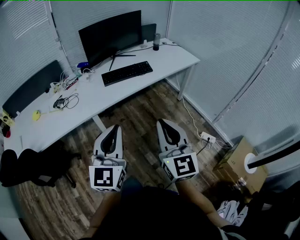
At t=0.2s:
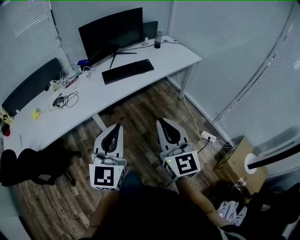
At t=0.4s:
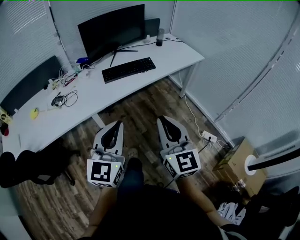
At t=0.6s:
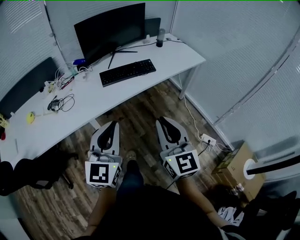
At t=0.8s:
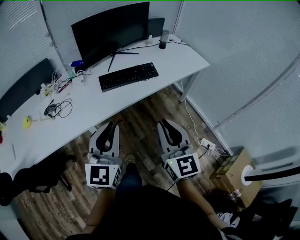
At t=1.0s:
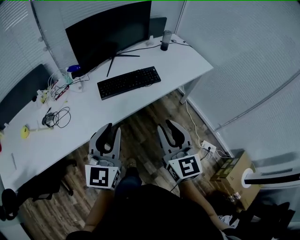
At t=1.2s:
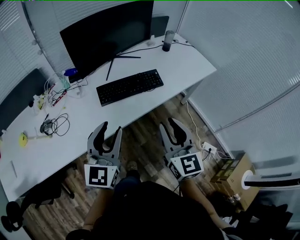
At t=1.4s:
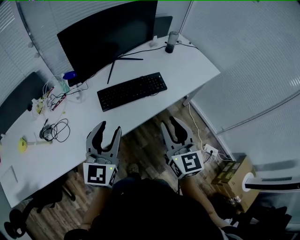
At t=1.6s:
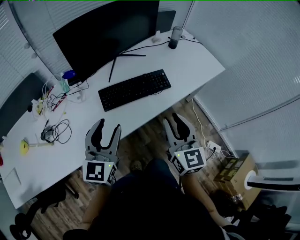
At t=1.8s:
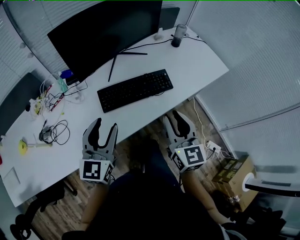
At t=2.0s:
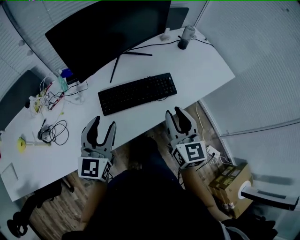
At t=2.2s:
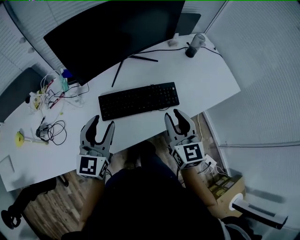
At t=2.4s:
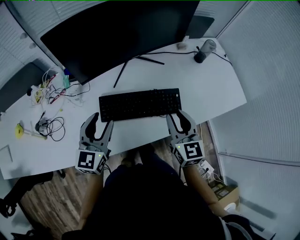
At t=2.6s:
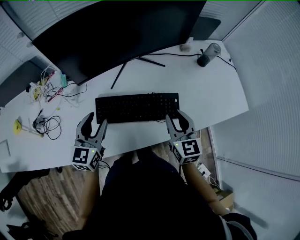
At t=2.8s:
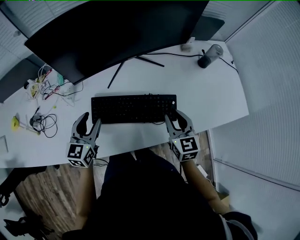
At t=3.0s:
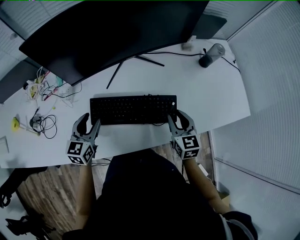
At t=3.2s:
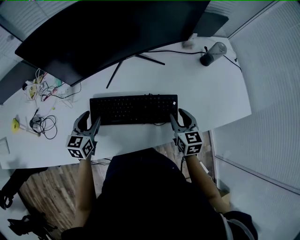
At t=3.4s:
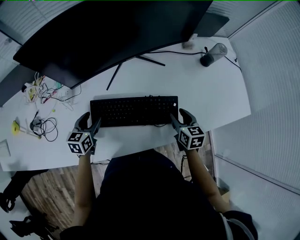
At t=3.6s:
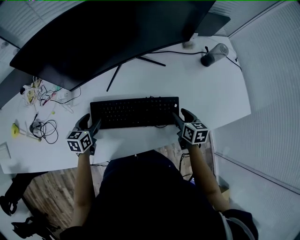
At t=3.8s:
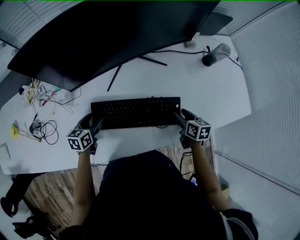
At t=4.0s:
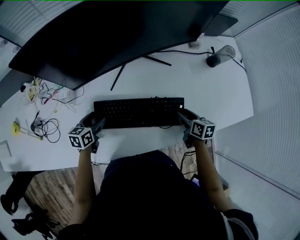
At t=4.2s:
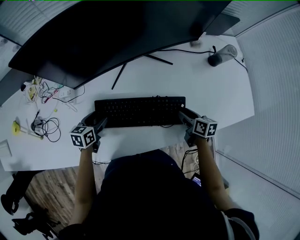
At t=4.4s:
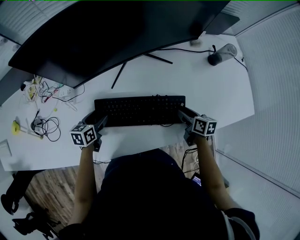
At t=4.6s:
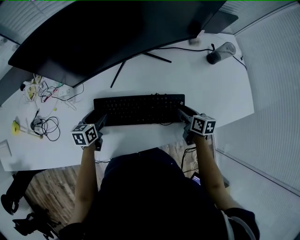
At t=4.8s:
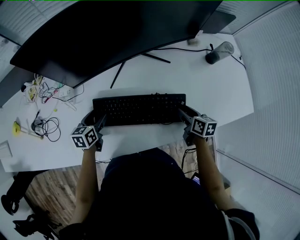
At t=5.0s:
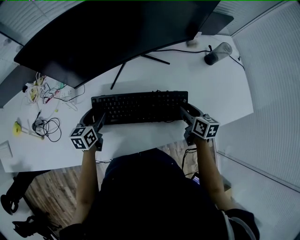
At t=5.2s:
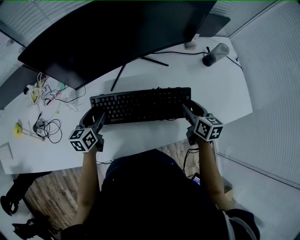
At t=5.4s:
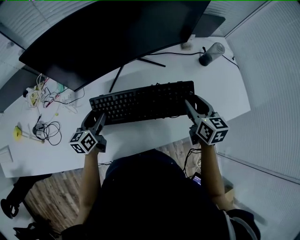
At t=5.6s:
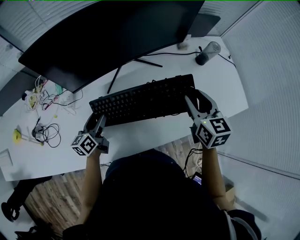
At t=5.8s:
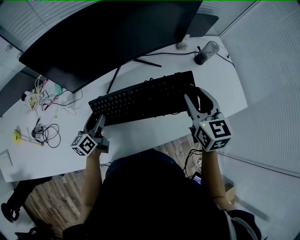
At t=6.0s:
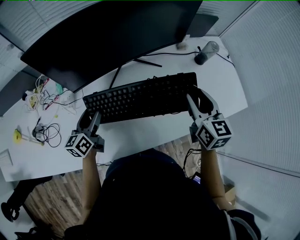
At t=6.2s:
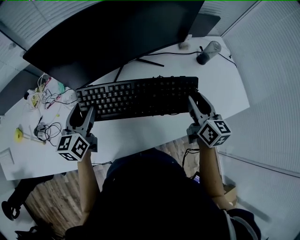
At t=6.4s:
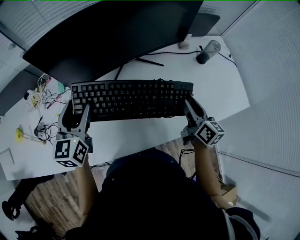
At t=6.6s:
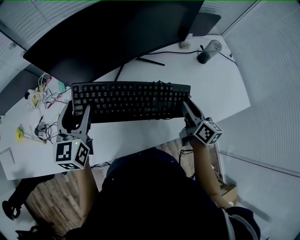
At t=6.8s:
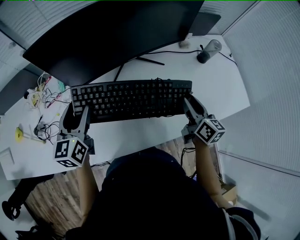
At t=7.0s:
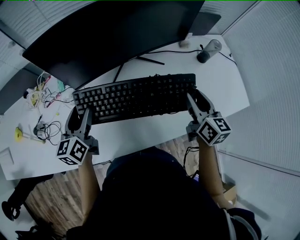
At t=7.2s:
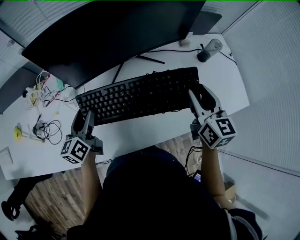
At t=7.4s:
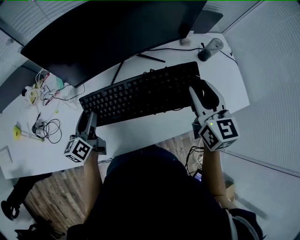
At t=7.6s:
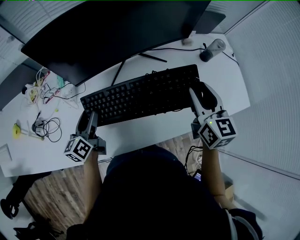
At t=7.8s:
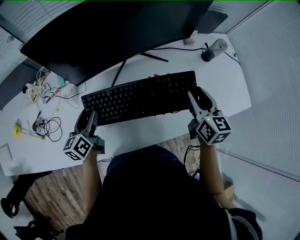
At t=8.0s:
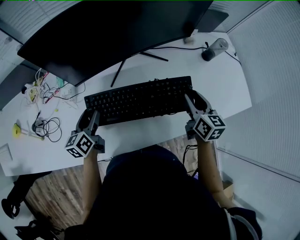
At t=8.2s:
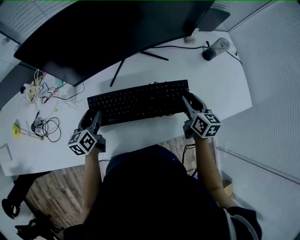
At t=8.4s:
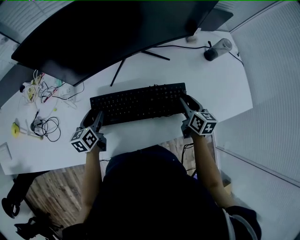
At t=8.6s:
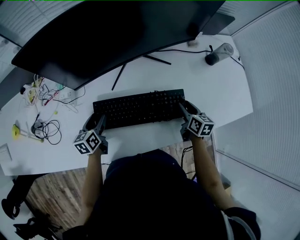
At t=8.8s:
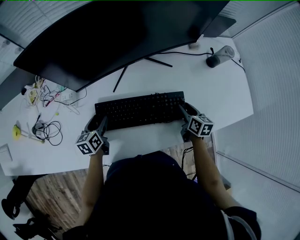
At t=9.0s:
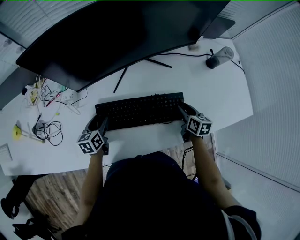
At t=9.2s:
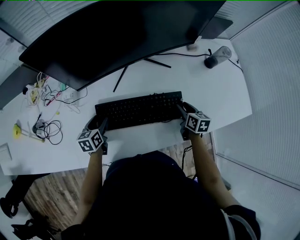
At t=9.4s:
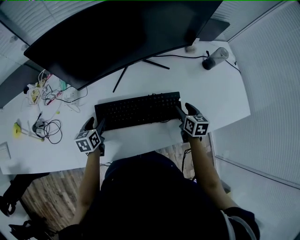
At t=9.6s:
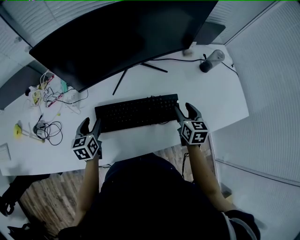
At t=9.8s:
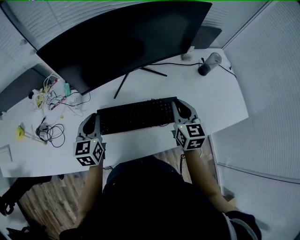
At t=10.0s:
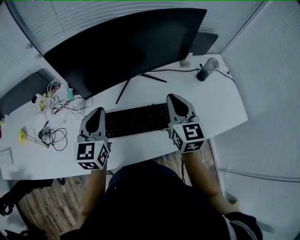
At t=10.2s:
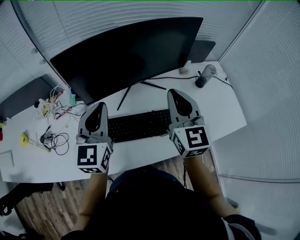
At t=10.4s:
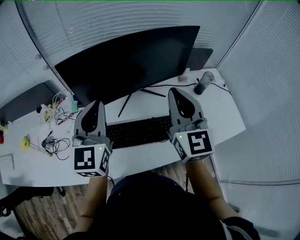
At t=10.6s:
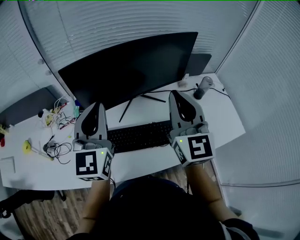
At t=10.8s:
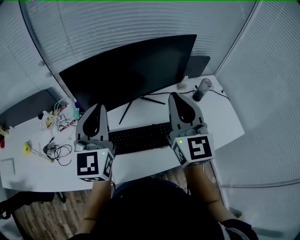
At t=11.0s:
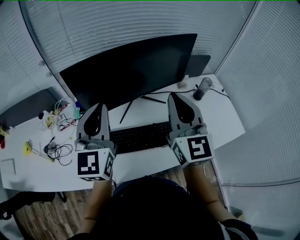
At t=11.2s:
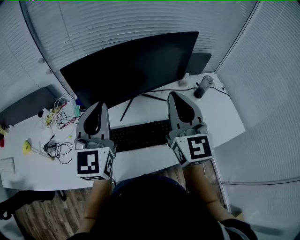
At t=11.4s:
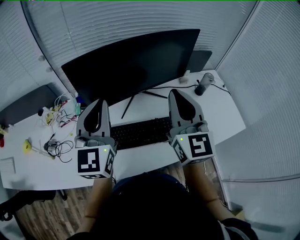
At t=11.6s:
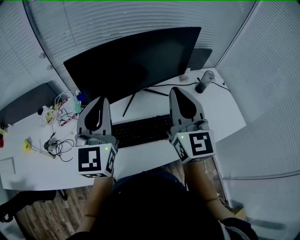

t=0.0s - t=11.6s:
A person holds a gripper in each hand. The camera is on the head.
t=0.0s - t=1.4s: The grippers both shift forward by about 40 cm. The left gripper opens up; the right gripper opens.
t=1.4s - t=2.8s: The two grippers go about 30 cm forward and downward. The left gripper swivels approximately 30 degrees. Meanwhile the right gripper rotates approximately 30 degrees.
t=2.8s - t=4.4s: The two grippers go some 15 cm downward. The right gripper rotates about 40 degrees, and opens its fingers, while the left gripper turns by some 30 degrees.
t=4.4s - t=5.8s: The left gripper is displaced upward by about 10 cm, and turns by approximately 30 degrees; the right gripper shifts approximately 25 cm upward, and swivels some 50 degrees.
t=5.8s - t=7.2s: The right gripper reaches approximately 10 cm downward, then returns; the left gripper goes roughly 10 cm upward.
t=7.2s - t=8.8s: The right gripper goes about 25 cm downward, and swivels some 30 degrees. Meanwhile the left gripper heads downward, covering about 15 cm, and turns by some 20 degrees.
t=8.8s - t=10.2s: Both grippers travel together upward, about 35 cm. The right gripper points its fingers approximately 30 degrees further upward, and closes its fingers. The left gripper tilts its fingers roughly 30 degrees upward, and closes its fingers.
t=10.2s - t=11.6s: The grippers both shift upward by about 5 cm.

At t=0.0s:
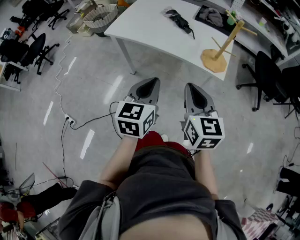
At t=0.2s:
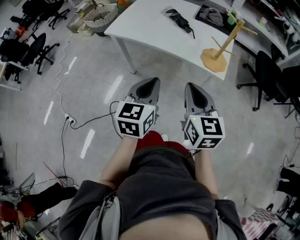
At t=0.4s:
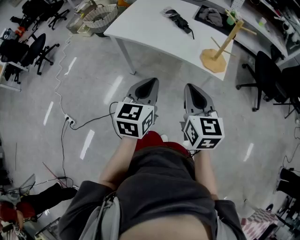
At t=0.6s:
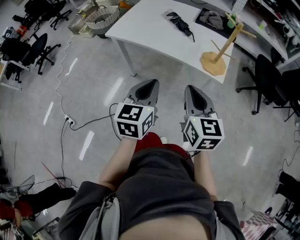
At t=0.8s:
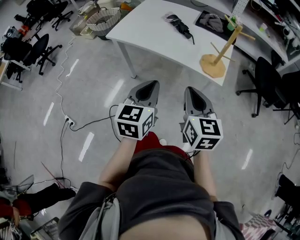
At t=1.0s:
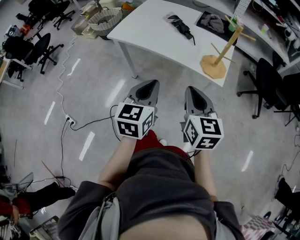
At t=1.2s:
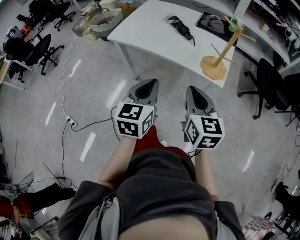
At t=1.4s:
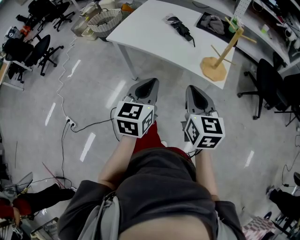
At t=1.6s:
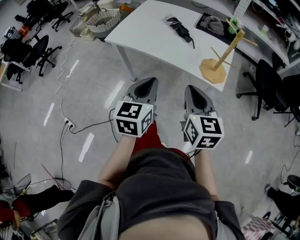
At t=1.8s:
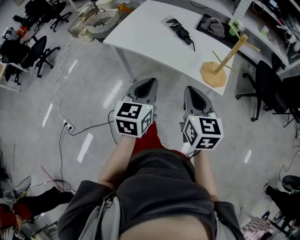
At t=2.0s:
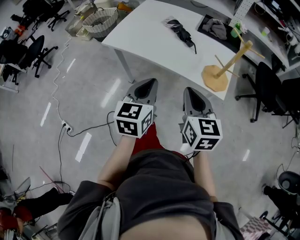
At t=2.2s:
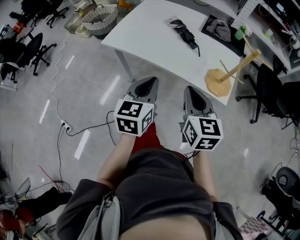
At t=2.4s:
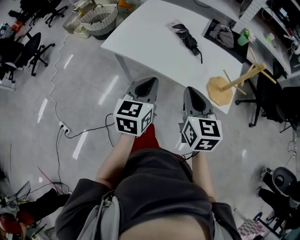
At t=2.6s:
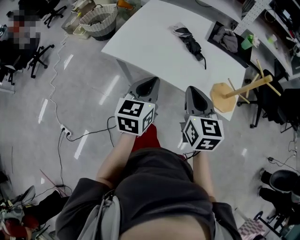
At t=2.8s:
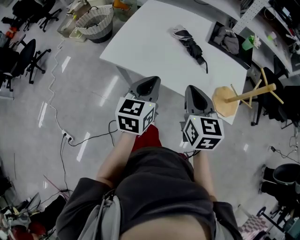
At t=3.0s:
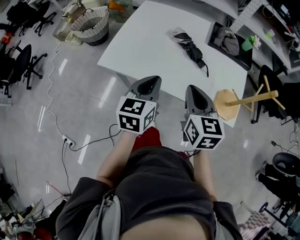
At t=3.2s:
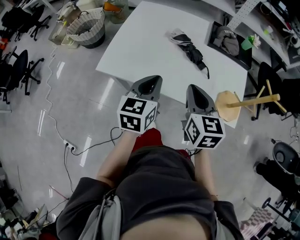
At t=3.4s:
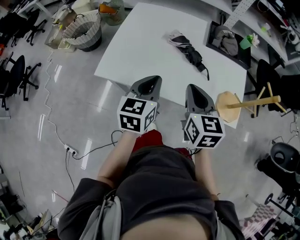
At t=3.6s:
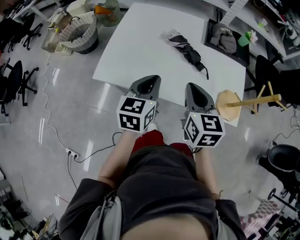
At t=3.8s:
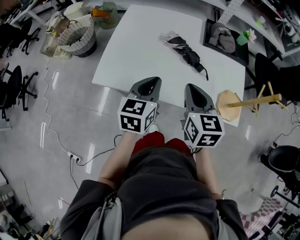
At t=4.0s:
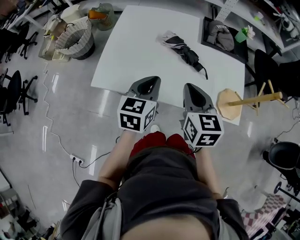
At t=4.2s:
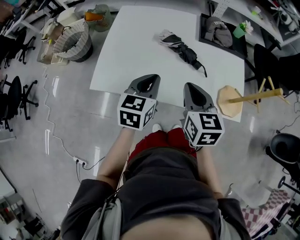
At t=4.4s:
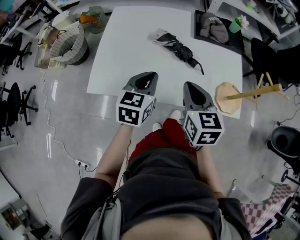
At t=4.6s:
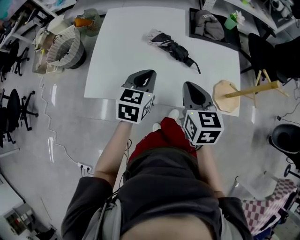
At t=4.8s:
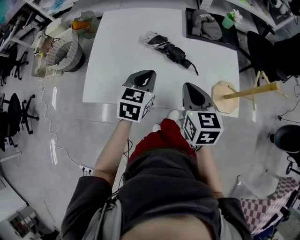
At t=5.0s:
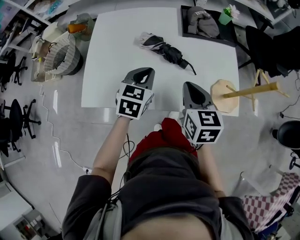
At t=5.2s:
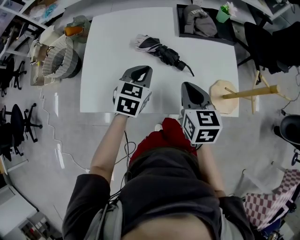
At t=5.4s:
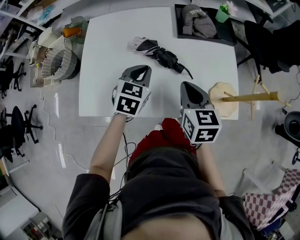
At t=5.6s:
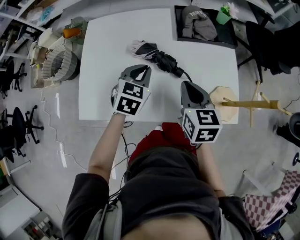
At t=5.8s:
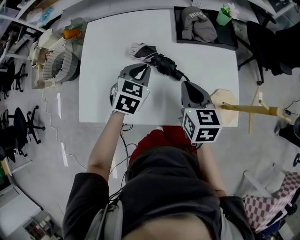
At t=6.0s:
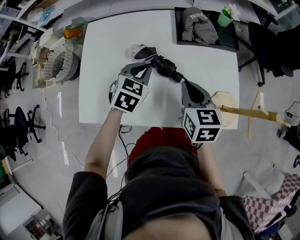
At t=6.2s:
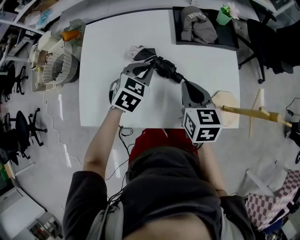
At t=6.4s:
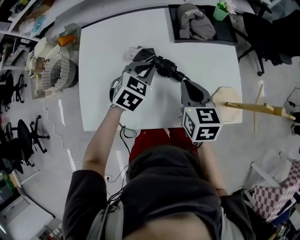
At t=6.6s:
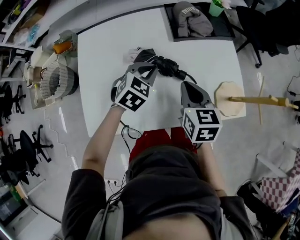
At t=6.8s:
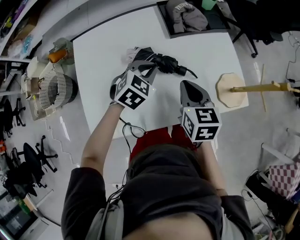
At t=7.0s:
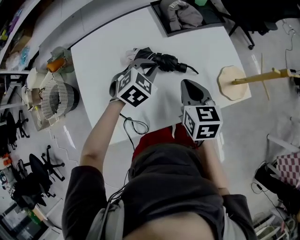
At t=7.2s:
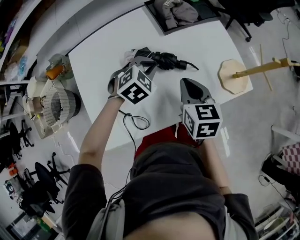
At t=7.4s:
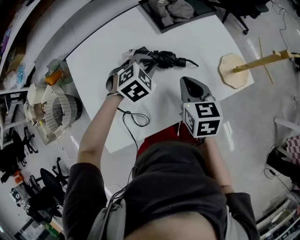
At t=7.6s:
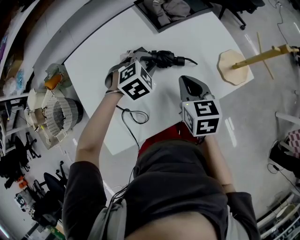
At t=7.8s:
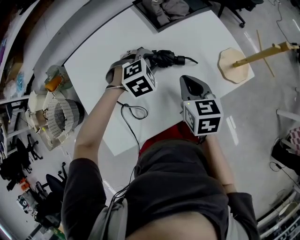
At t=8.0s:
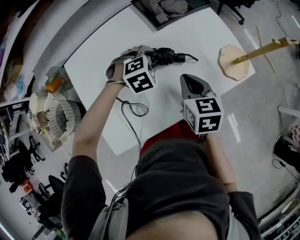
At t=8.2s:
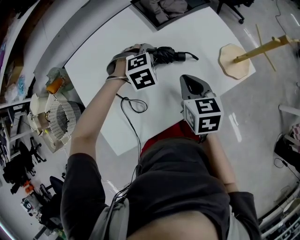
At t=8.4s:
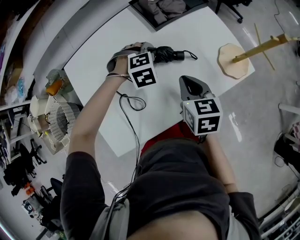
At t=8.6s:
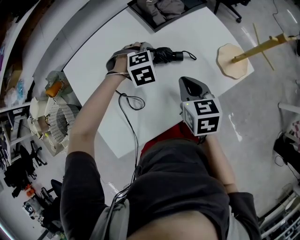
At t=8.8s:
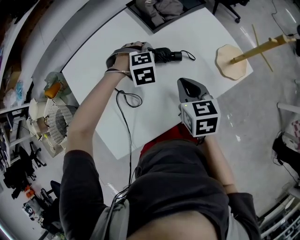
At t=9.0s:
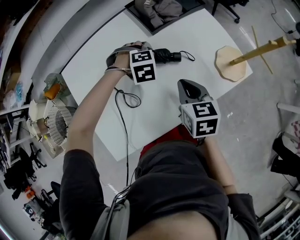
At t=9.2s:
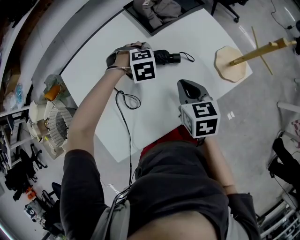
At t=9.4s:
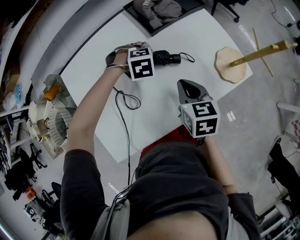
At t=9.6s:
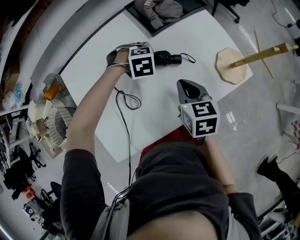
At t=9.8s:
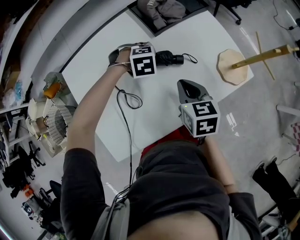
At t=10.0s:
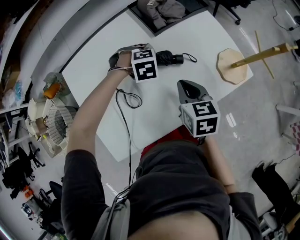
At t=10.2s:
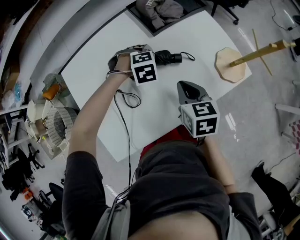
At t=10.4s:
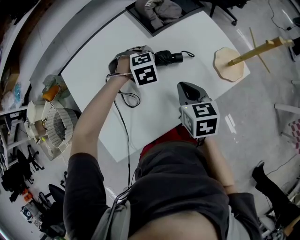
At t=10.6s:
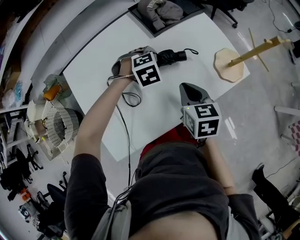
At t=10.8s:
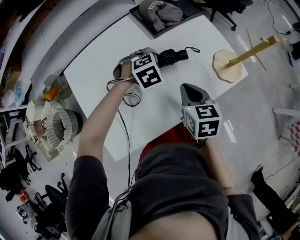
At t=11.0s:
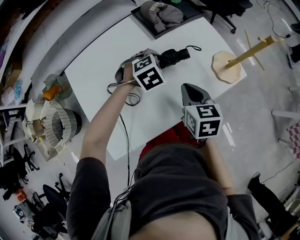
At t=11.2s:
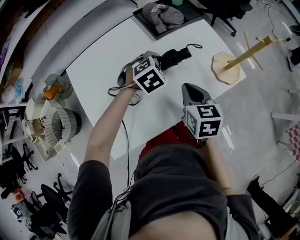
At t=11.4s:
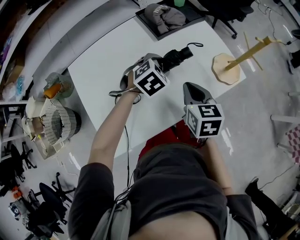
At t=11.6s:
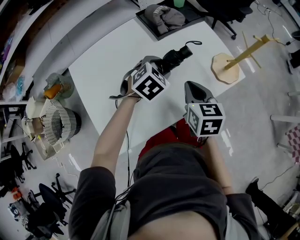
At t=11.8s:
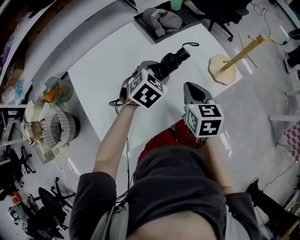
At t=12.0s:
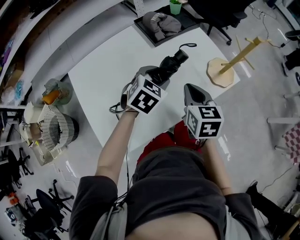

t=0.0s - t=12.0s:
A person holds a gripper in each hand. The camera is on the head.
t=0.0s - t=1.6s: The grippers stay close to where they were, moving slightly.
t=1.6s - t=3.0s: The left gripper shifts approximately 25 cm forward. The right gripper shifts roughly 25 cm forward and to the left.
t=3.0s - t=4.4s: The left gripper moves forward, about 10 cm; the right gripper moves forward, approximately 5 cm.
t=4.4s - t=6.0s: The left gripper shifts about 15 cm forward, and swivels some 30 degrees; the right gripper shifts approximately 15 cm forward and to the right.
t=6.0s - t=7.6s: The left gripper rotates around the line of its fingers by roughly 50 degrees, clockwise from behind, and opens up. Meanwhile the right gripper moves some 5 cm, and changes its angle by roughly 30 degrees.
t=7.6s - t=9.0s: The left gripper moves downward, some 5 cm, turns by some 30 degrees, and opens its fingers.
t=9.0s - t=10.4s: The grippers move only a little.
t=10.4s - t=12.0s: The right gripper goes about 5 cm upward. The left gripper moves upward and backward, approximately 15 cm, and turns by about 50 degrees.
